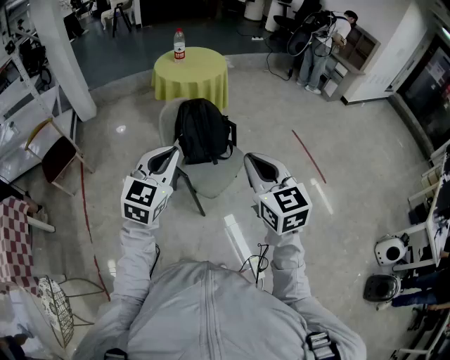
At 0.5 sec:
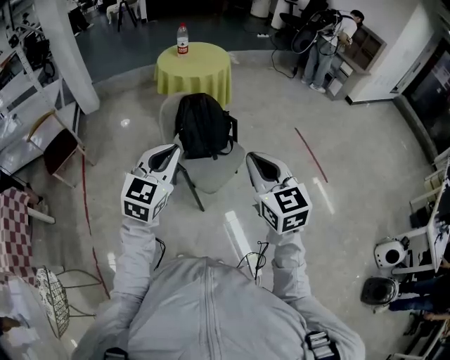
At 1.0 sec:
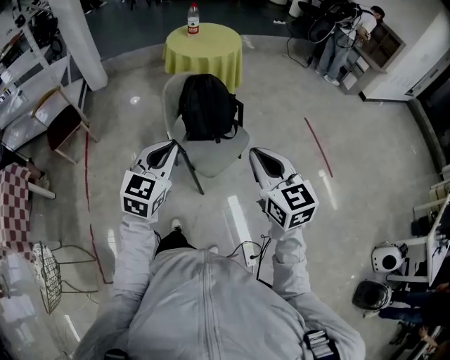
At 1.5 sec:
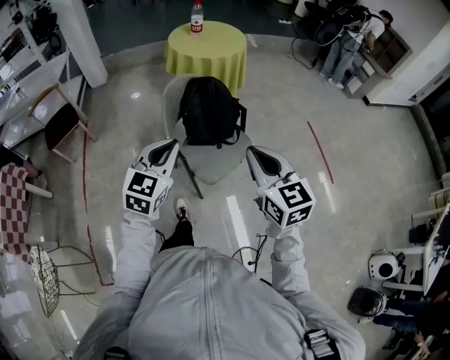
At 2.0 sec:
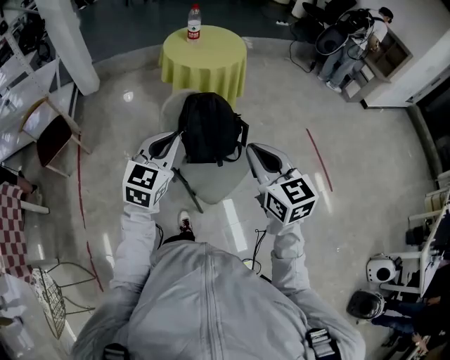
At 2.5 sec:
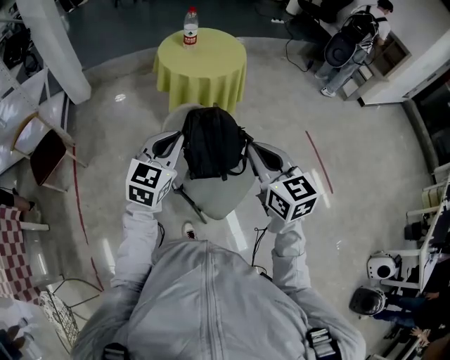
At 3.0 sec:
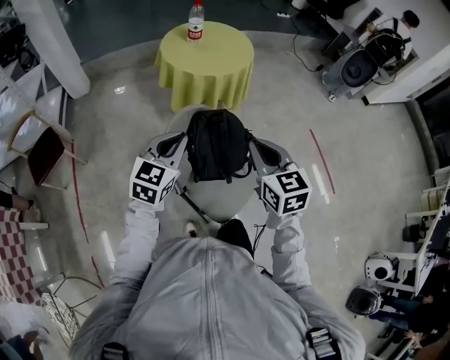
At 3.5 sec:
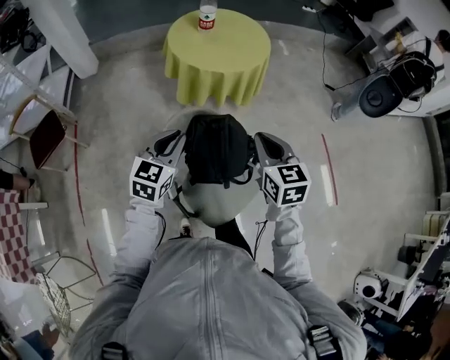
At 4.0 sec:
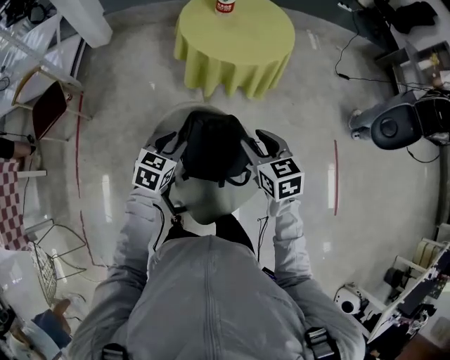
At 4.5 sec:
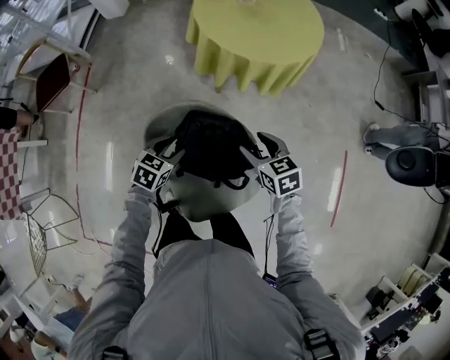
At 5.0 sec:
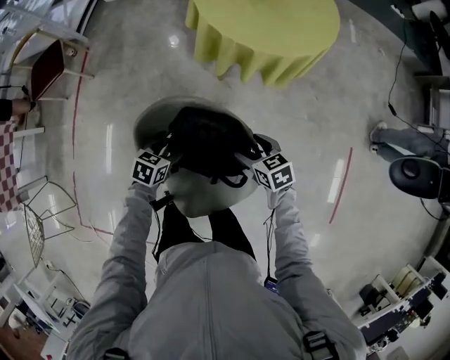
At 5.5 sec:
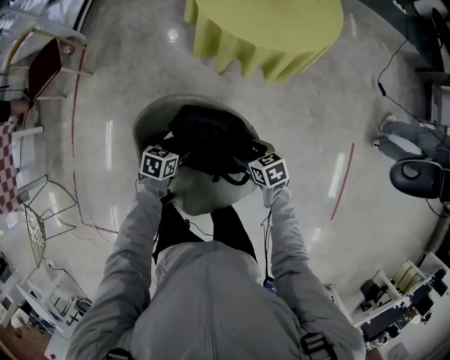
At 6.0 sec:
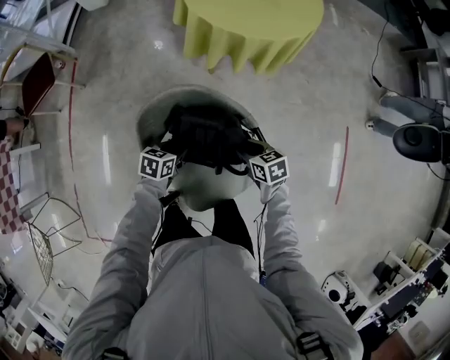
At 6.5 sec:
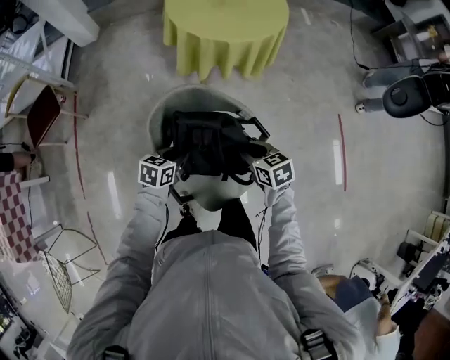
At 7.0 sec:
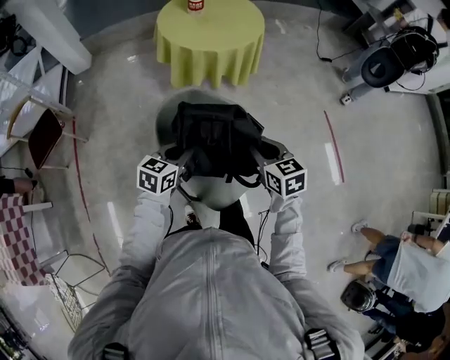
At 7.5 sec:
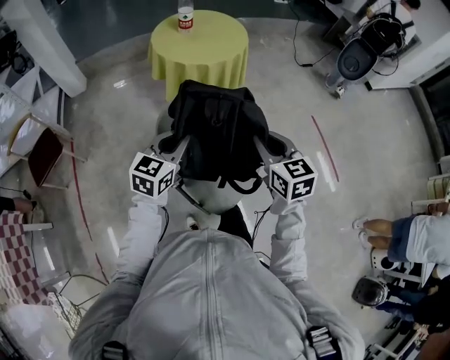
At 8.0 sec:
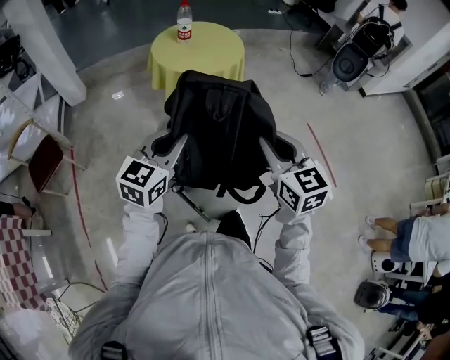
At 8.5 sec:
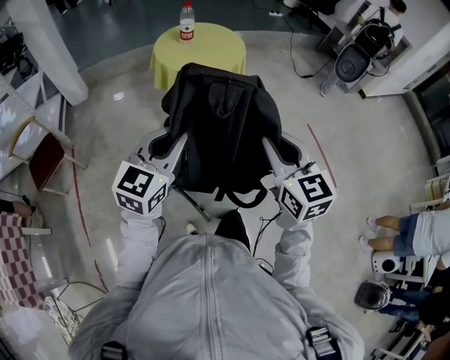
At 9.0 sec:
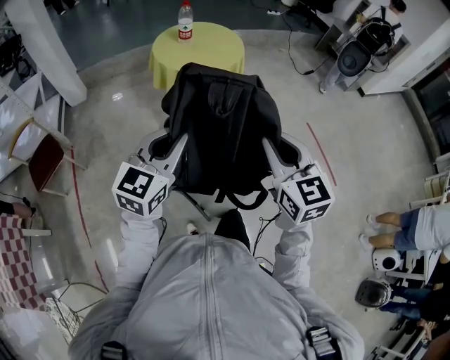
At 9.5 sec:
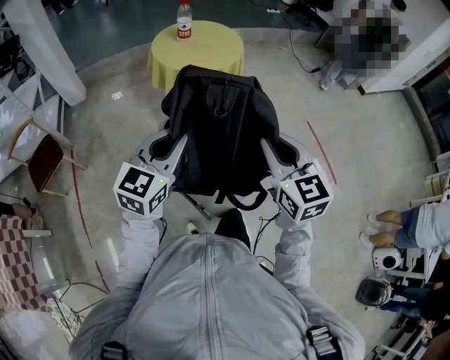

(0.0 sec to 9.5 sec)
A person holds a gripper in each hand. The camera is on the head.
0.0 sec - 2.0 sec: The grippers both shift forward by some 20 cm.
2.0 sec - 4.0 sec: The two grippers go approximately 40 cm forward and downward. The right gripper turns by some 30 degrees, and opens its fingers. The left gripper turns by about 30 degrees, and opens its fingers.
4.0 sec - 5.5 sec: The two grippers go approximately 25 cm downward. The right gripper changes its angle by roughly 30 degrees, and opens its fingers. The left gripper swivels about 30 degrees.
5.5 sec - 7.5 sec: Both grippers move upward, approximately 35 cm. The left gripper angles its fingers upward, by roughly 40 degrees, and closes. Meanwhile the right gripper changes its angle by about 50 degrees, and closes up.
7.5 sec - 9.5 sec: The two grippers go about 10 cm upward and backward.

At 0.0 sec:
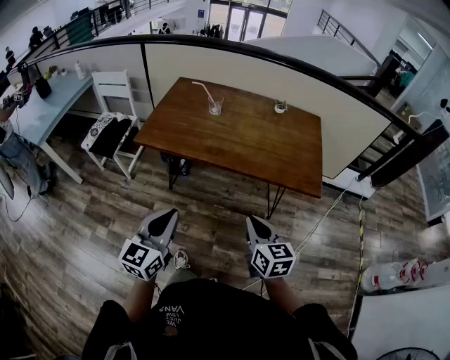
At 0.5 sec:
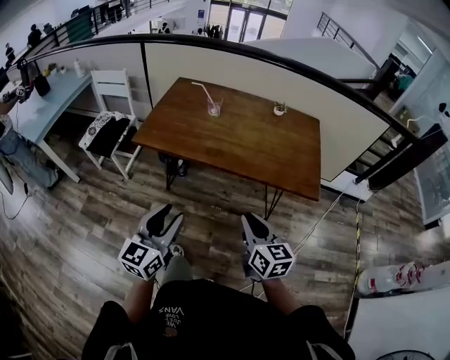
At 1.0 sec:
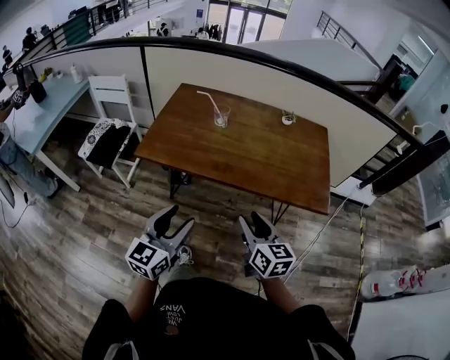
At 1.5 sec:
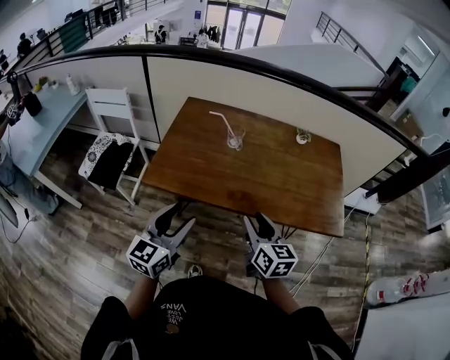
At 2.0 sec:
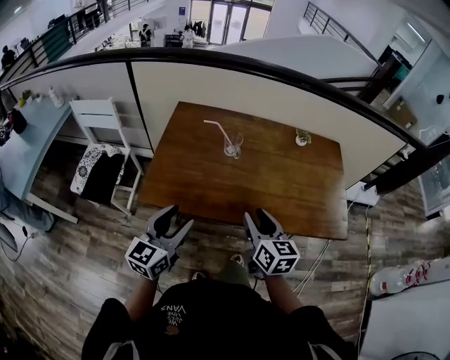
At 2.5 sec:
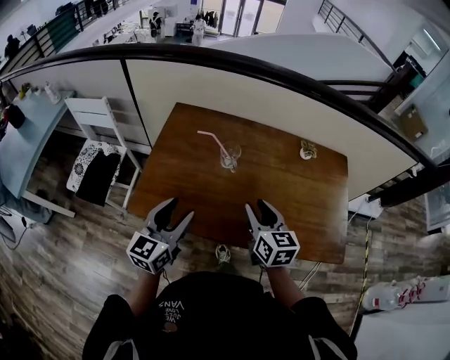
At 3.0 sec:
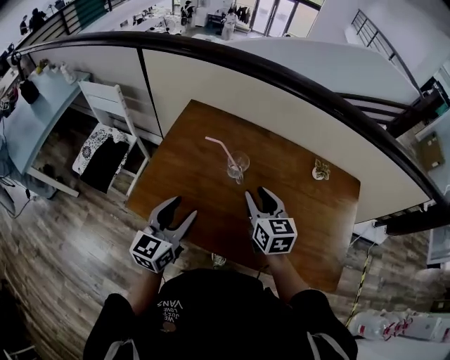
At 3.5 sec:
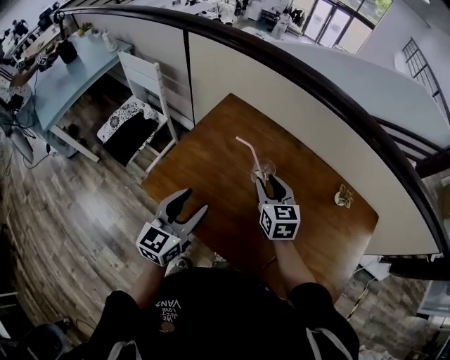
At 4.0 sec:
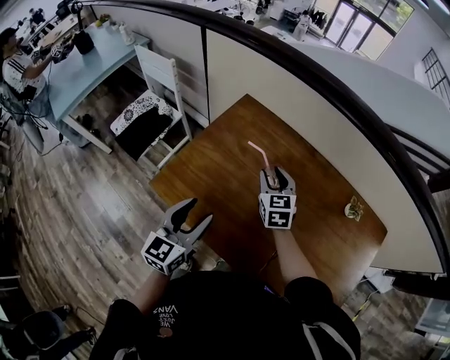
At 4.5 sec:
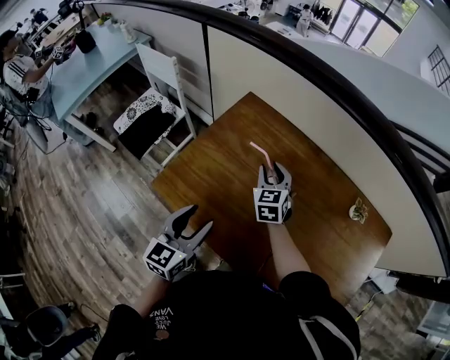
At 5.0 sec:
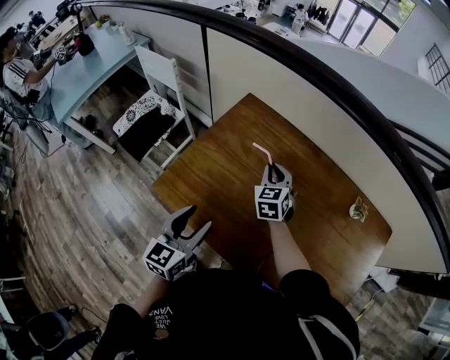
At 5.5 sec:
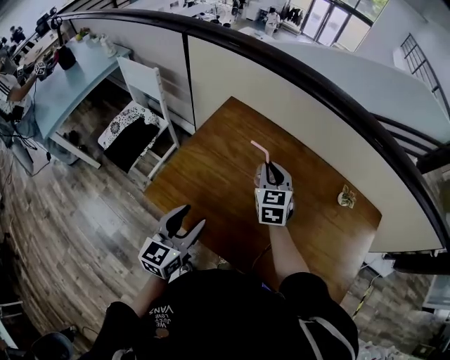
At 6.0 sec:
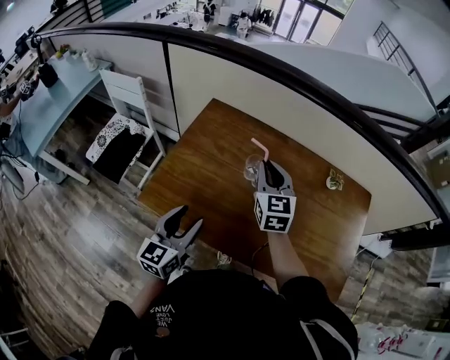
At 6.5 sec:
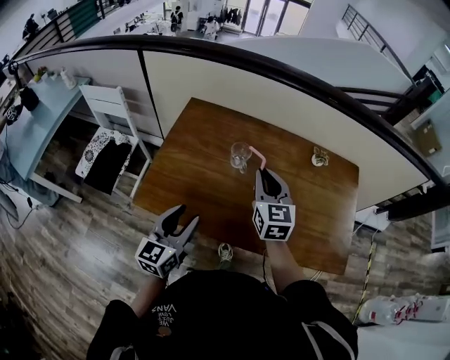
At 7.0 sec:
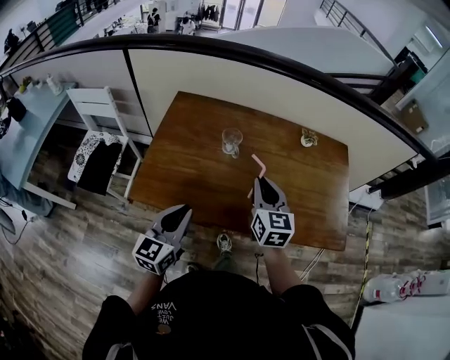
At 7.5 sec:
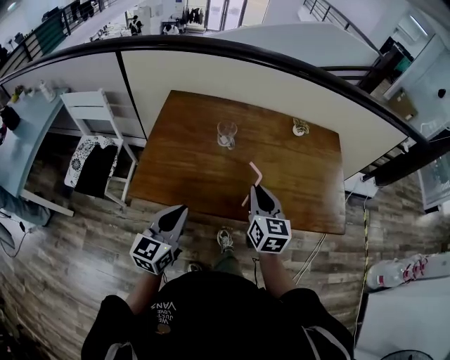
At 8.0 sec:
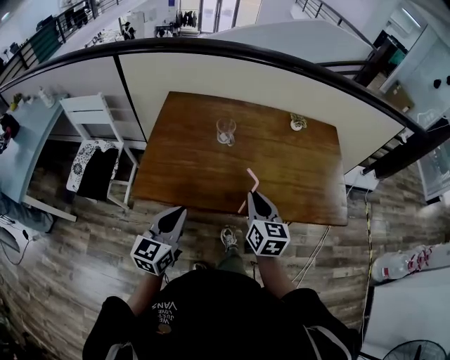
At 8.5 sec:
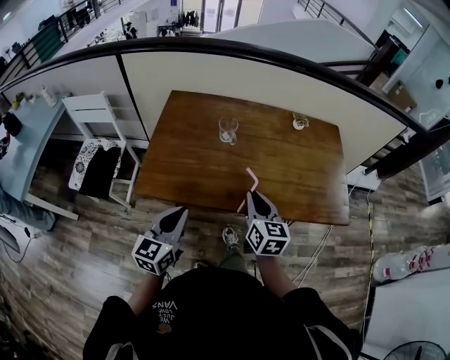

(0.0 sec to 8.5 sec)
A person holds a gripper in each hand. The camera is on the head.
0.0 sec - 2.0 sec: The two grippers go some 30 cm forward and to the left. The left gripper opens. Meanwhile the right gripper opens.
2.0 sec - 4.0 sec: The right gripper heads forward, covering roughly 35 cm, and rotates roughly 40 degrees. Meanwhile the left gripper travels forward by approximately 15 cm, and rotates some 30 degrees.
4.0 sec - 6.5 sec: The left gripper shifts about 5 cm backward, while the right gripper moves backward, upward and to the right, roughly 20 cm, swivels roughly 30 degrees, and closes up.
6.5 sec - 8.5 sec: The left gripper moves backward, some 10 cm, and closes its fingers. The right gripper shifts some 20 cm backward, and rotates approximately 20 degrees.

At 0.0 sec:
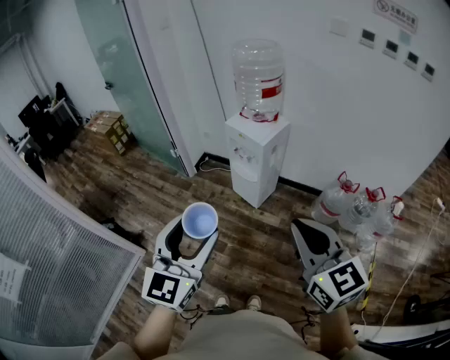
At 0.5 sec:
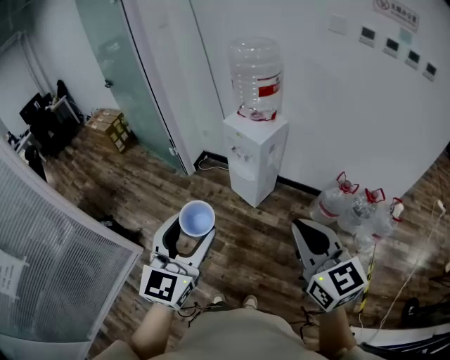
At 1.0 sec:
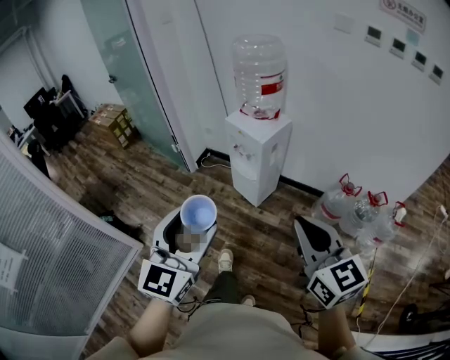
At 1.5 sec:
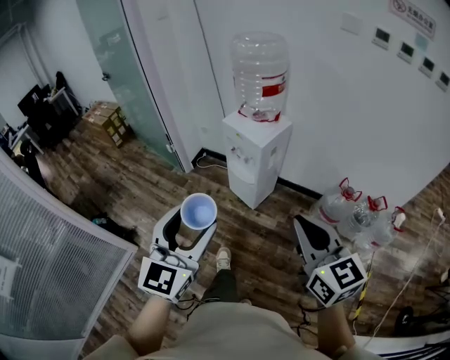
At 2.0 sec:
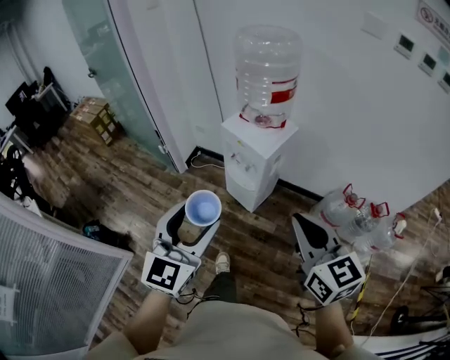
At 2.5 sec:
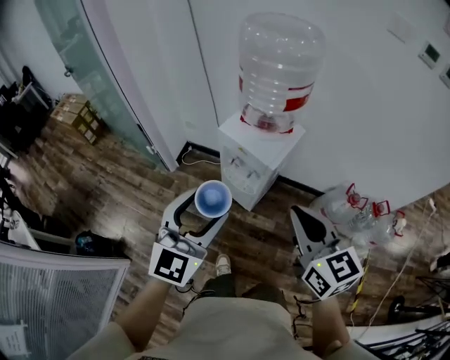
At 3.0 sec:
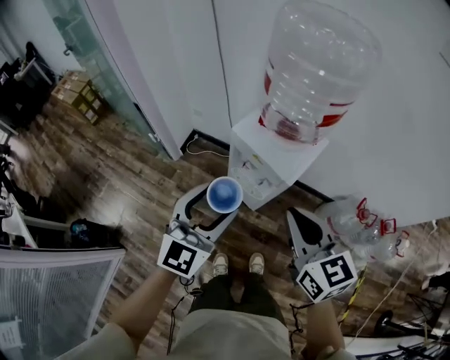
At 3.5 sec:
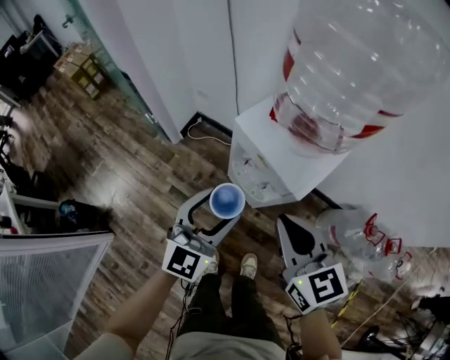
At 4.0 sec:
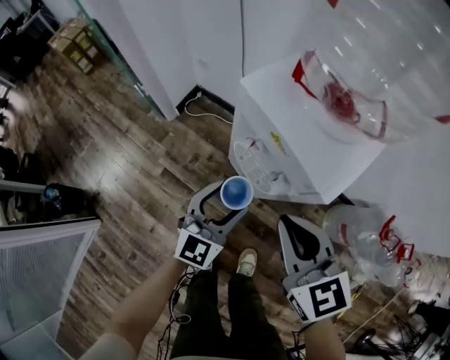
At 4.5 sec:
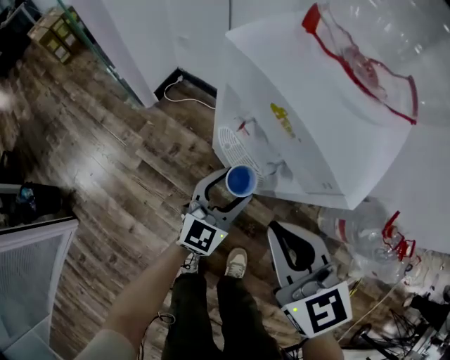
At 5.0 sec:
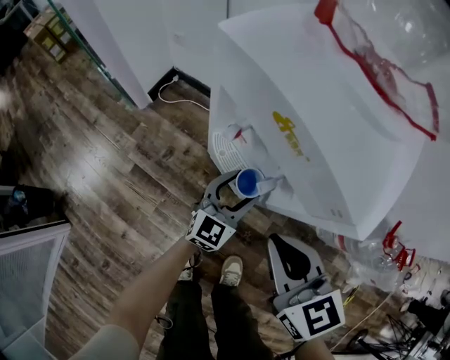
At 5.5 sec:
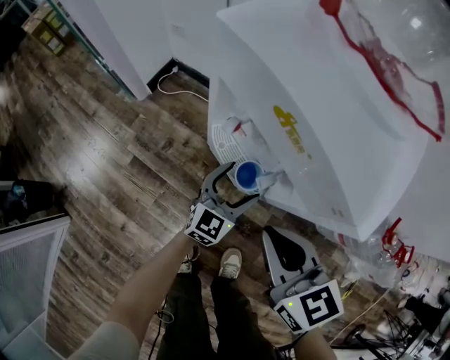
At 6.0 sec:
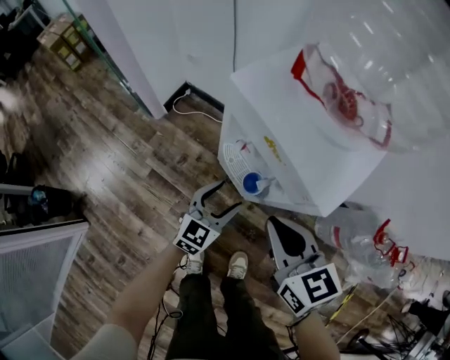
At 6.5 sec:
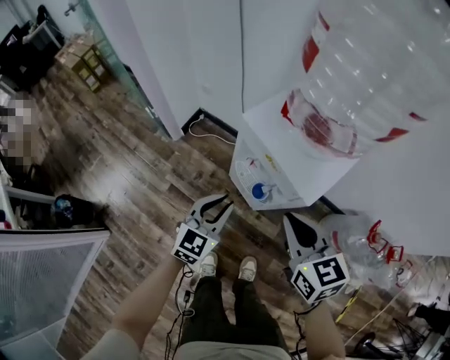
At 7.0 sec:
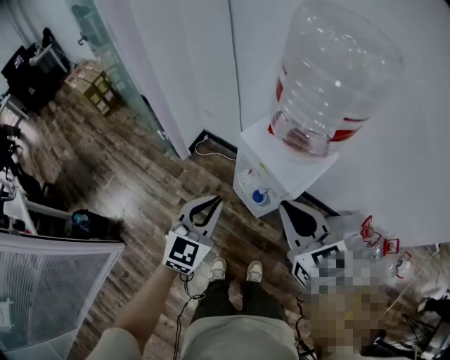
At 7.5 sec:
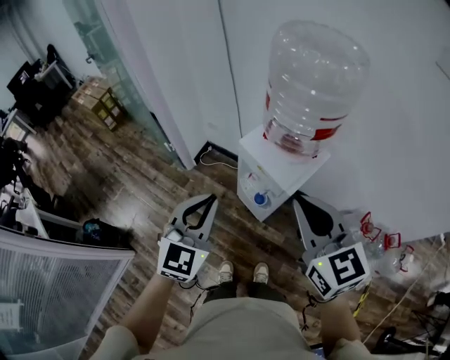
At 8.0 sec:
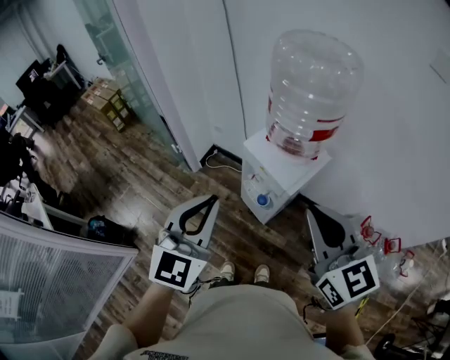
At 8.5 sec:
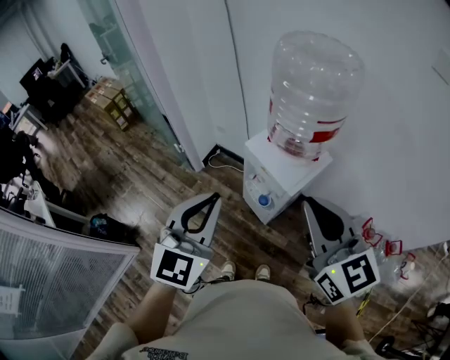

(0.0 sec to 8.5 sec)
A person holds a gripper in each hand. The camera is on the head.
0.0 sec - 2.0 sec: Both grippers travel together forward, roughly 20 cm.
2.0 sec - 4.0 sec: The right gripper travels forward and downward by approximately 40 cm. Meanwhile the left gripper is displaced downward and forward by approximately 50 cm.
4.0 sec - 6.5 sec: The left gripper travels downward and back again, some 25 cm each way, and closes its fingers, while the right gripper moves roughly 15 cm downward and comes back.
6.5 sec - 8.5 sec: The two grippers go about 35 cm upward. The right gripper changes its angle by approximately 20 degrees. Meanwhile the left gripper changes its angle by roughly 20 degrees.
